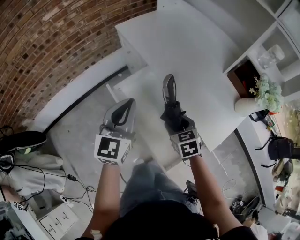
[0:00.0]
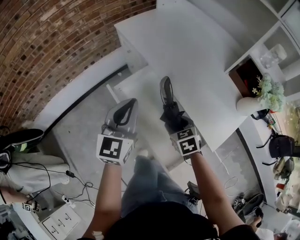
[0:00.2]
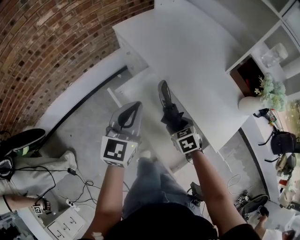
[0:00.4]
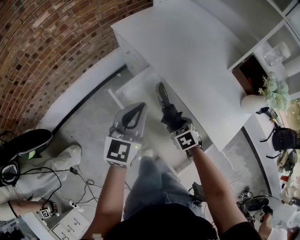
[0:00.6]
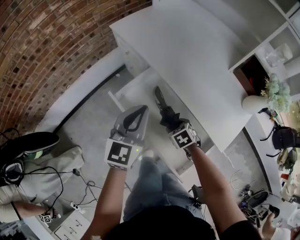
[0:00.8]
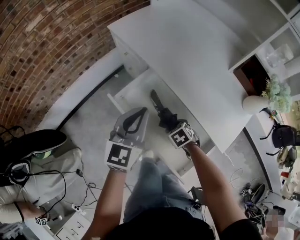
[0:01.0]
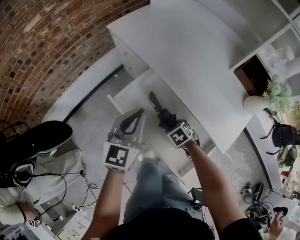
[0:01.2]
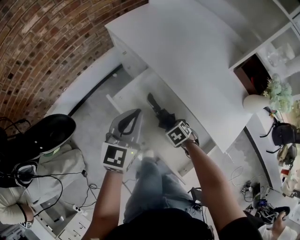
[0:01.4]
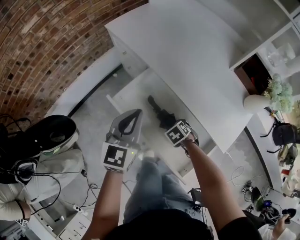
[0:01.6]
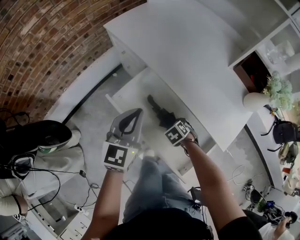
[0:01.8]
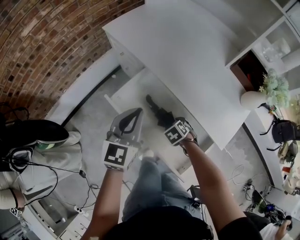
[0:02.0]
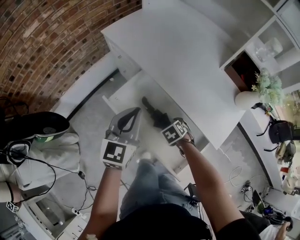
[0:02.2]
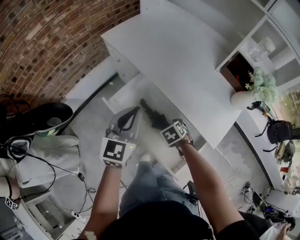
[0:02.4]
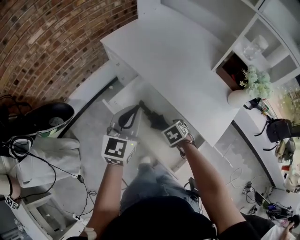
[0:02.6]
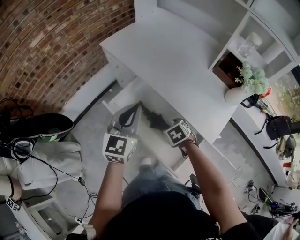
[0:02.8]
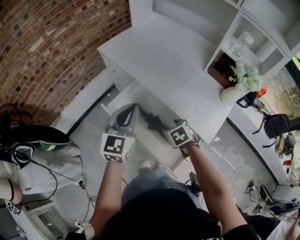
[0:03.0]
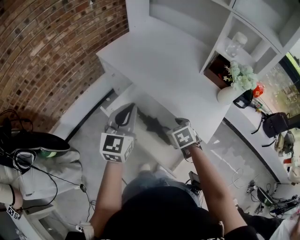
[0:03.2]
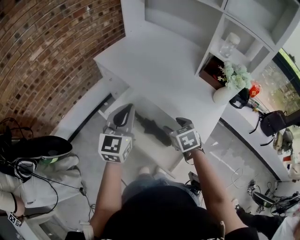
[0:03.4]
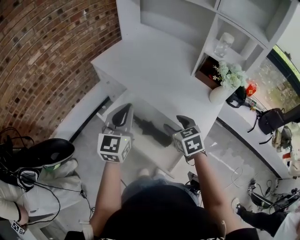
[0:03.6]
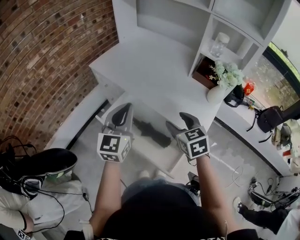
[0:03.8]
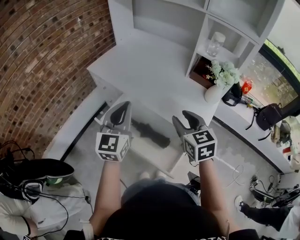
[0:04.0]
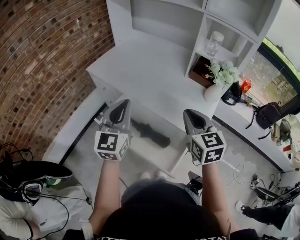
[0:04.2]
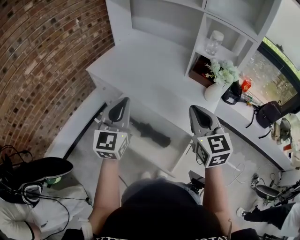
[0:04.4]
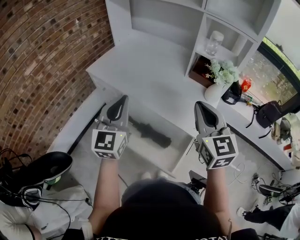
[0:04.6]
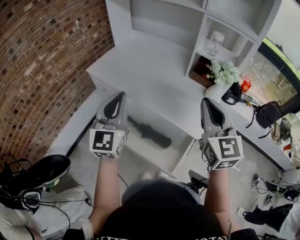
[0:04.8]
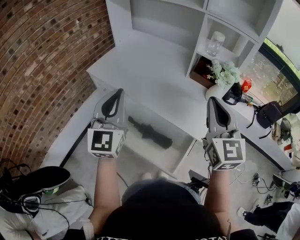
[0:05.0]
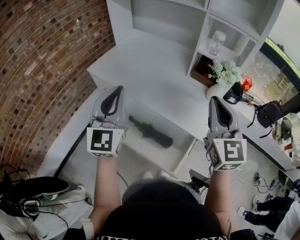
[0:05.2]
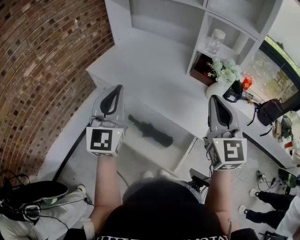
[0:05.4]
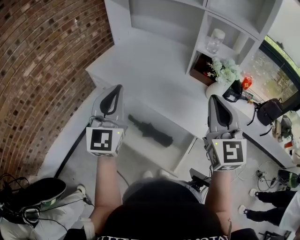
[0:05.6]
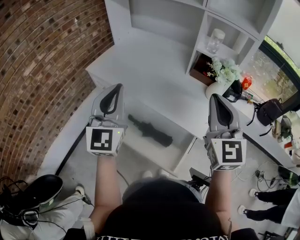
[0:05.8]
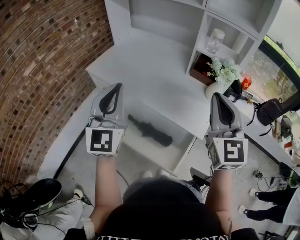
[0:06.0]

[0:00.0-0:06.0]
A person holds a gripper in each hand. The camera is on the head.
0:00.0 to 0:01.6: The right gripper goes approximately 15 cm downward, and points its fingers some 30 degrees further downward. Meanwhile the left gripper travels downward by roughly 5 cm.
0:01.6 to 0:03.0: The left gripper heads upward, covering some 10 cm. Meanwhile the right gripper goes some 15 cm upward, and turns by approximately 20 degrees.
0:03.0 to 0:04.4: The right gripper goes some 30 cm upward, angles its fingers upward, by about 50 degrees, and closes up. The left gripper is displaced upward by approximately 10 cm.
0:04.4 to 0:06.0: The two grippers go about 10 cm upward.

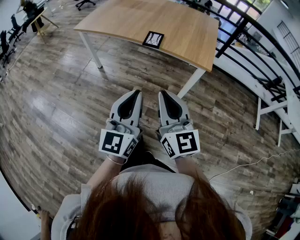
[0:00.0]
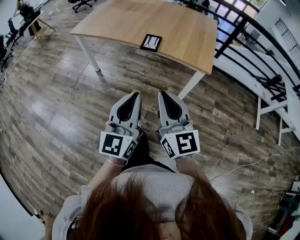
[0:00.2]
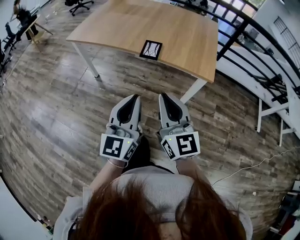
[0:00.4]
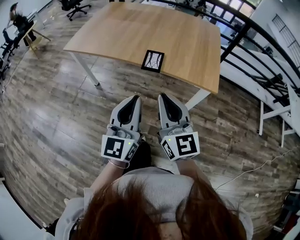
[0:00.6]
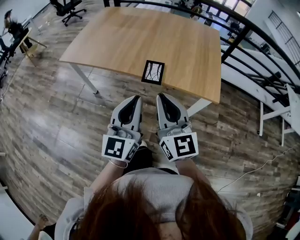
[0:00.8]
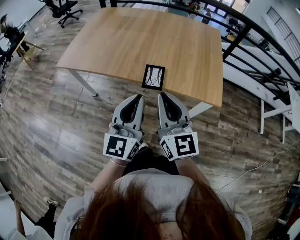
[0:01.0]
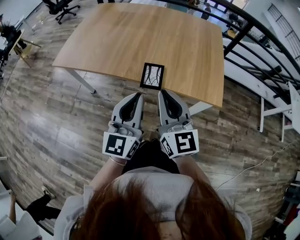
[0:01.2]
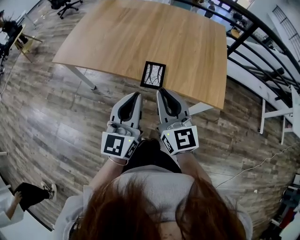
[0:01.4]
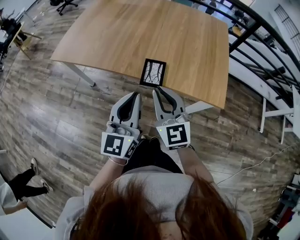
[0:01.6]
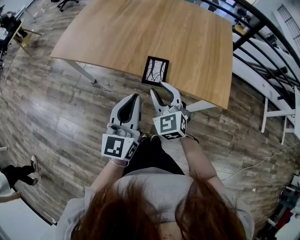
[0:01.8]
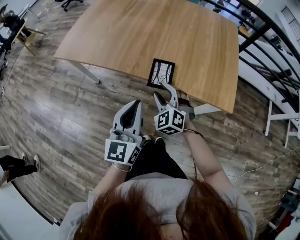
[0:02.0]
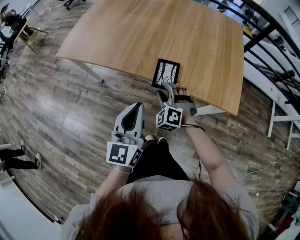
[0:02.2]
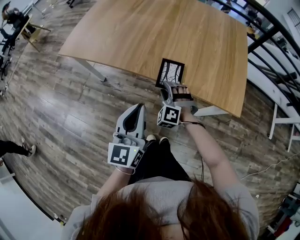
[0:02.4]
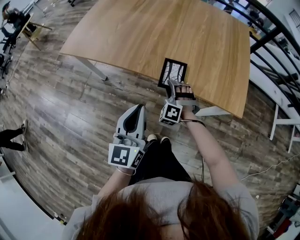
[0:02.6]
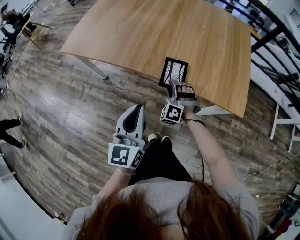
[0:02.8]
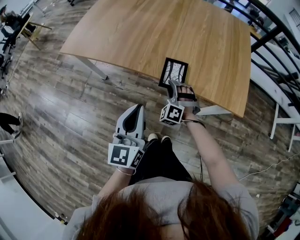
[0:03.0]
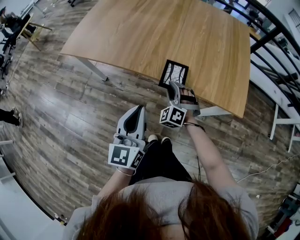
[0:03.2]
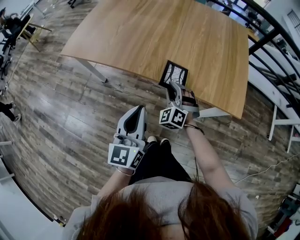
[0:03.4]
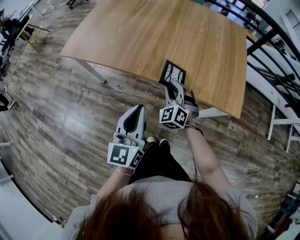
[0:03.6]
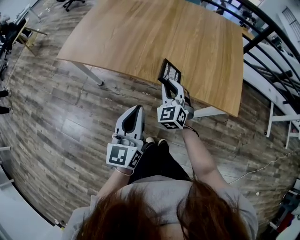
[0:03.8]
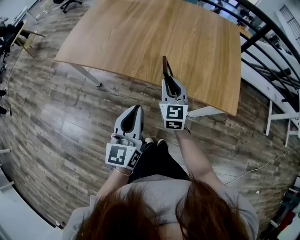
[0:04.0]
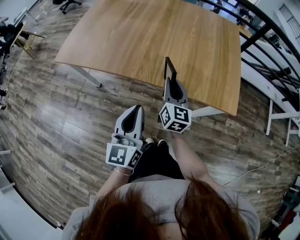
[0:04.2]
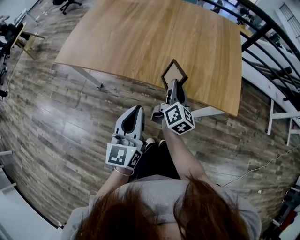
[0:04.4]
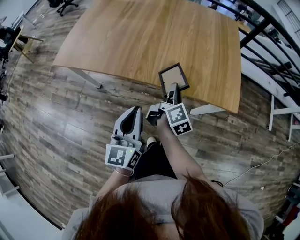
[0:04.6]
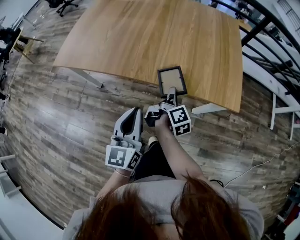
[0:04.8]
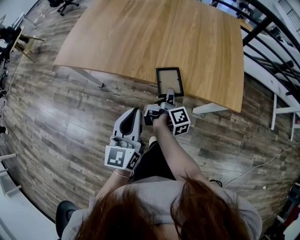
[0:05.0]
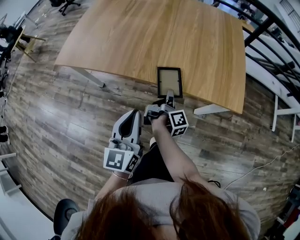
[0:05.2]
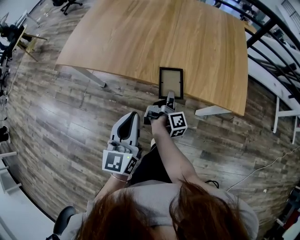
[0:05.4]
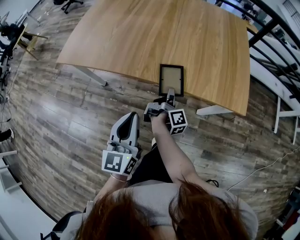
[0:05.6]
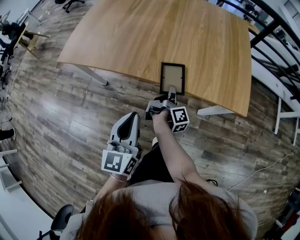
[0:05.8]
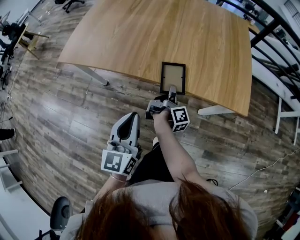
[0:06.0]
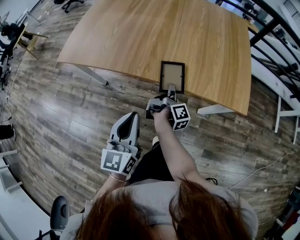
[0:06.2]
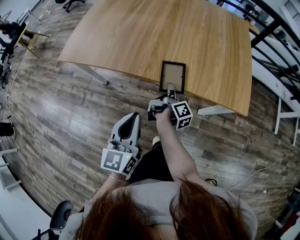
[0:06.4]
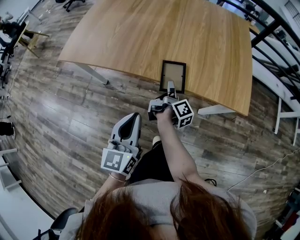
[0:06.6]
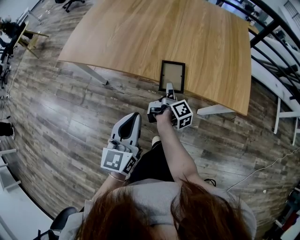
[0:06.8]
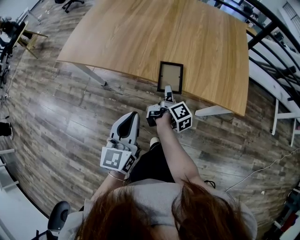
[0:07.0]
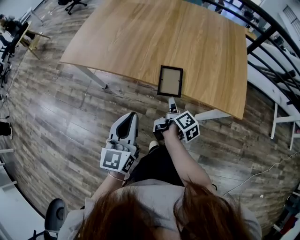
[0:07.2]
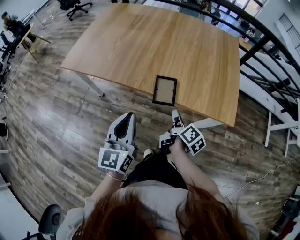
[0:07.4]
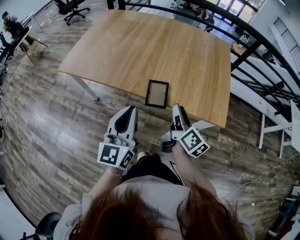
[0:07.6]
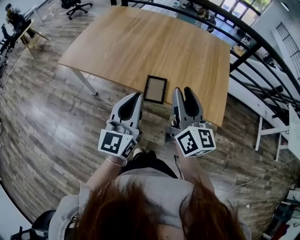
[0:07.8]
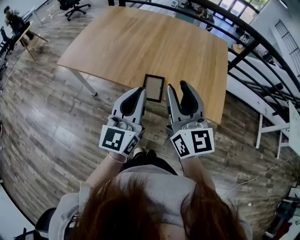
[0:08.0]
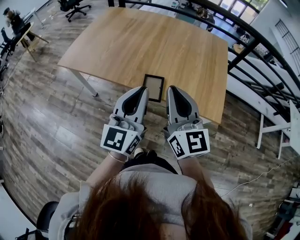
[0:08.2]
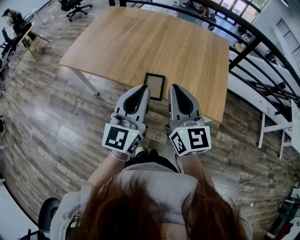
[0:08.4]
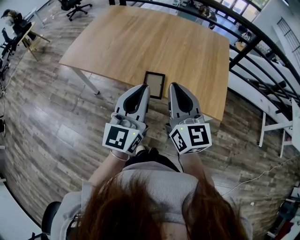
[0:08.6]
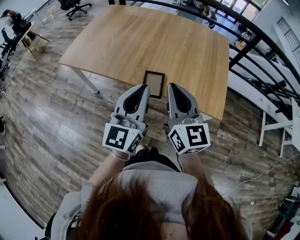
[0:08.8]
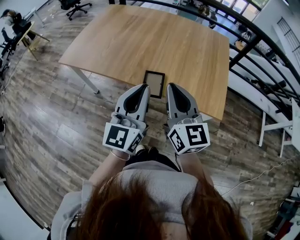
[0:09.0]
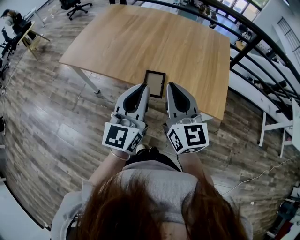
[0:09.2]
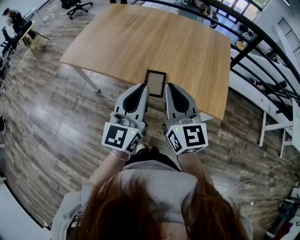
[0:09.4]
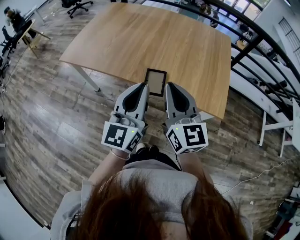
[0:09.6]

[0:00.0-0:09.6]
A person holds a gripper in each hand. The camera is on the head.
0:00.0 to 0:01.6: The grippers both shift forward by approximately 35 cm.
0:01.6 to 0:03.2: The right gripper is displaced downward and forward by about 25 cm, rolls counterclockwise, seen from behind, by some 50 degrees, and opens up; the left gripper is displaced to the left and downward by roughly 10 cm.
0:03.2 to 0:04.8: The right gripper travels to the right by approximately 10 cm, goes upward and returns, some 10 cm each way, and twists about 140 degrees clockwise, seen from behind.
0:04.8 to 0:06.4: The right gripper is displaced downward and to the left by about 10 cm.
0:06.4 to 0:08.0: The right gripper shifts some 35 cm upward, rolls counterclockwise, seen from behind, by approximately 90 degrees, and opens, while the left gripper heads upward and to the right, covering roughly 15 cm.
0:08.0 to 0:09.6: The right gripper closes up.

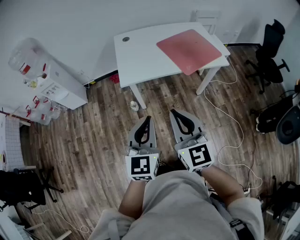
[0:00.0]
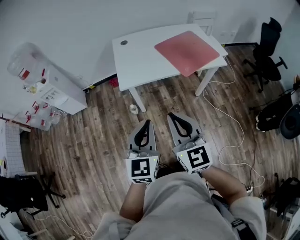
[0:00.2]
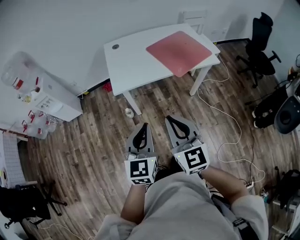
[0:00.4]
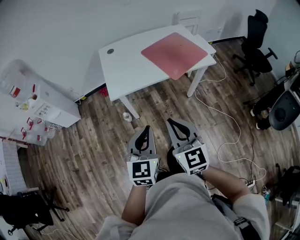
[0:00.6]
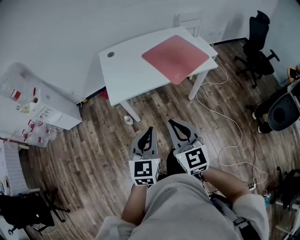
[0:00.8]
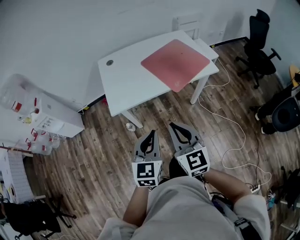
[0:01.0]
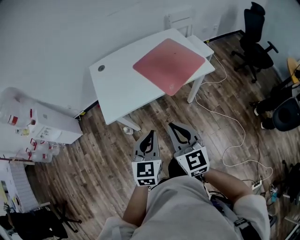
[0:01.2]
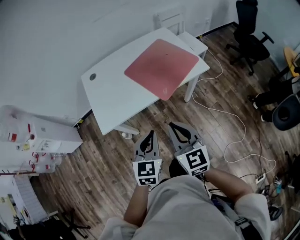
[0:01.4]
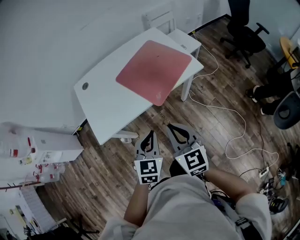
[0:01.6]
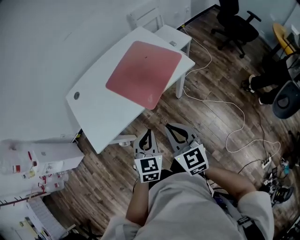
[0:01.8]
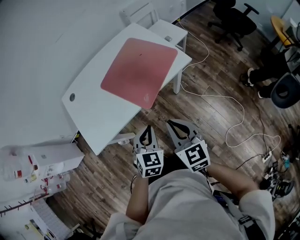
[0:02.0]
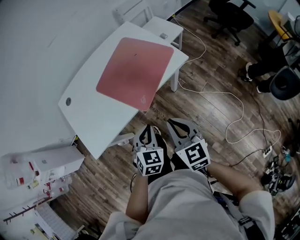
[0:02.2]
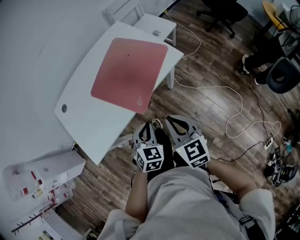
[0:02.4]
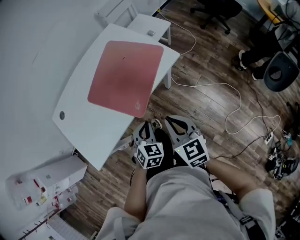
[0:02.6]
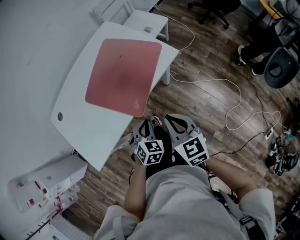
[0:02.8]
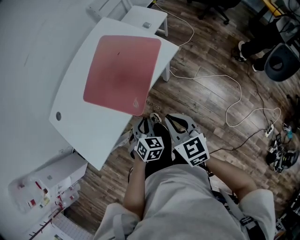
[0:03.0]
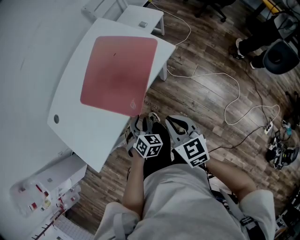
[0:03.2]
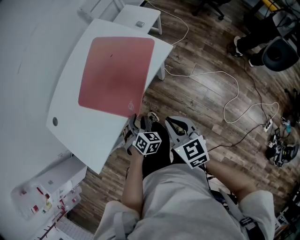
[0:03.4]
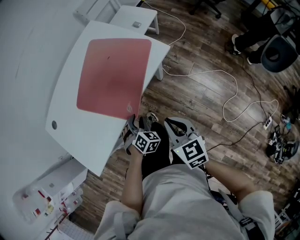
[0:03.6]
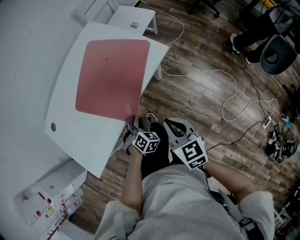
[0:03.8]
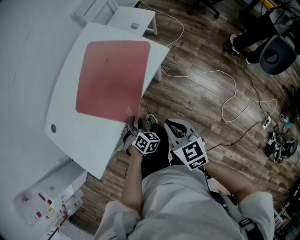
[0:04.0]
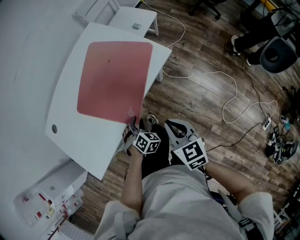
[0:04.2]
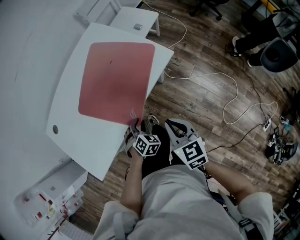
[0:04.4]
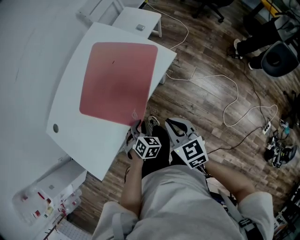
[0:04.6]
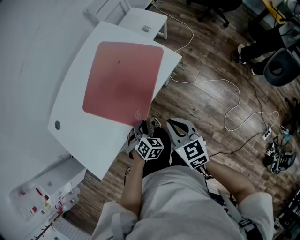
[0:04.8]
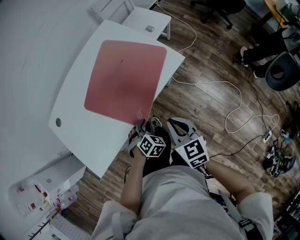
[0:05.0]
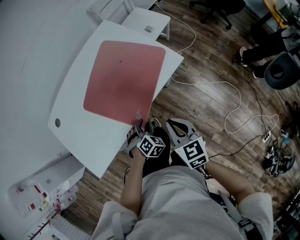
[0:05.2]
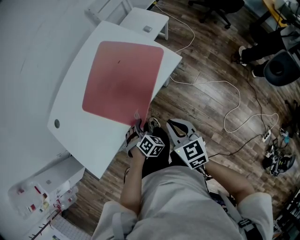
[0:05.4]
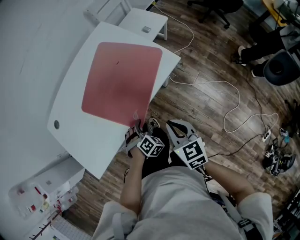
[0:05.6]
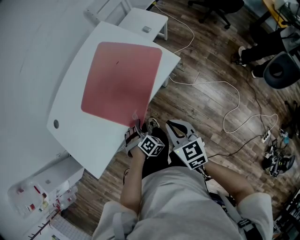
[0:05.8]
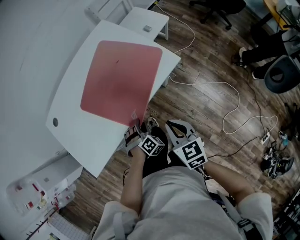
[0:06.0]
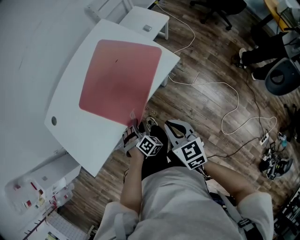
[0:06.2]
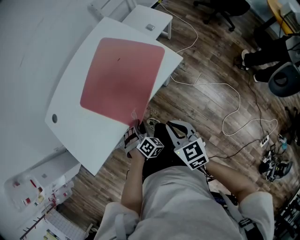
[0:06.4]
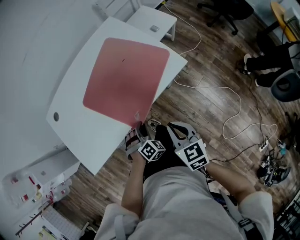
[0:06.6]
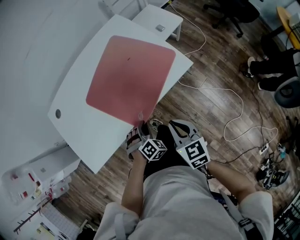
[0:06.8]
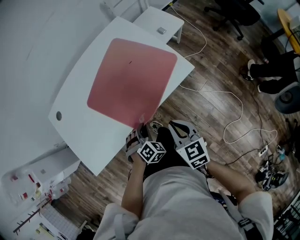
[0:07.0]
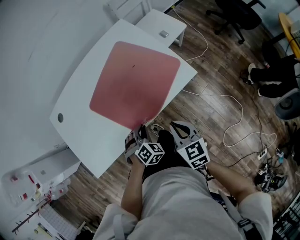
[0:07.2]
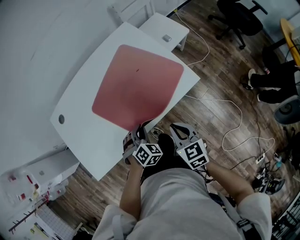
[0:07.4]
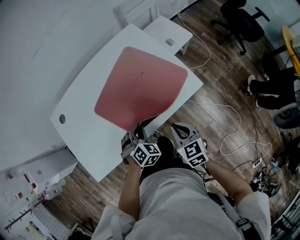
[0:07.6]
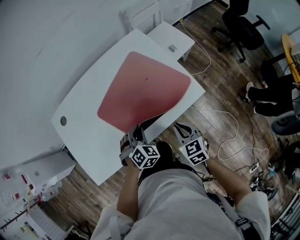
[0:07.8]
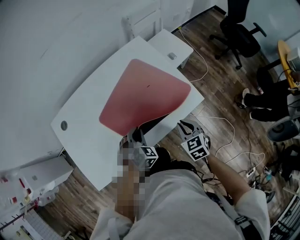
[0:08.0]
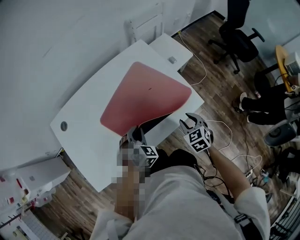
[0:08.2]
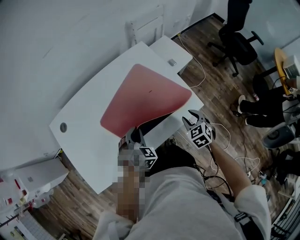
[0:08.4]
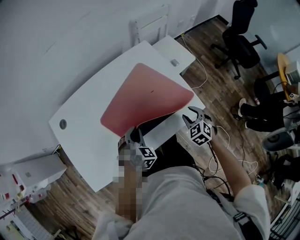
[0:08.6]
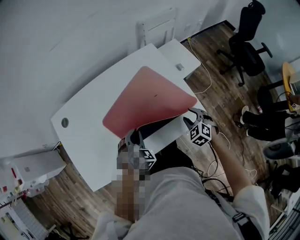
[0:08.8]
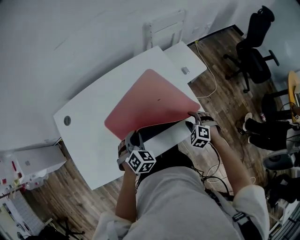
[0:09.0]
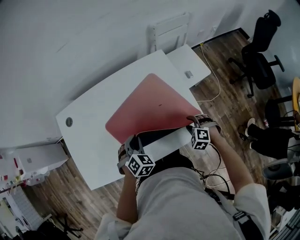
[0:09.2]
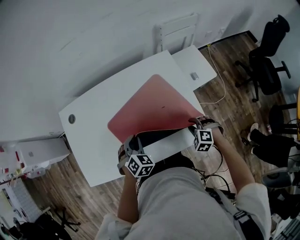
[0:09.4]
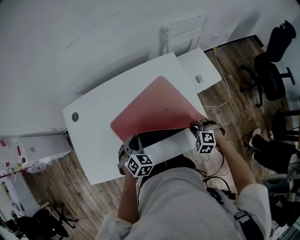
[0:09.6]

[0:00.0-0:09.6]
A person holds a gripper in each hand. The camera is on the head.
0:00.0 to 0:01.6: The two grippers go approximately 30 cm forward, to the right and downward. The left gripper rotates about 30 degrees.
0:01.6 to 0:03.2: The right gripper travels downward, to the right and forward by roughly 20 cm, and rotates roughly 20 degrees; the left gripper moves downward and forward, about 25 cm, swivels some 40 degrees, and opens.
0:03.2 to 0:04.8: The grippers make only small movements.
0:06.4 to 0:08.0: The left gripper shifts some 20 cm forward and upward, and turns by about 20 degrees; the right gripper goes roughly 15 cm forward, and turns by approximately 20 degrees.
0:08.0 to 0:09.6: The left gripper changes place by some 10 cm, and rotates roughly 20 degrees; the right gripper ends up some 15 cm from where it was, twists about 60 degrees counterclockwise, seen from behind, and opens, then closes again.
